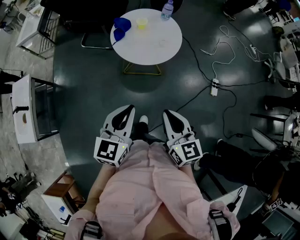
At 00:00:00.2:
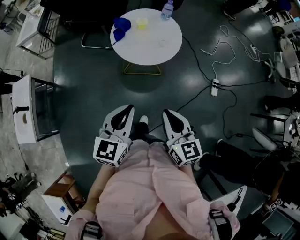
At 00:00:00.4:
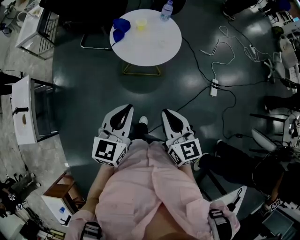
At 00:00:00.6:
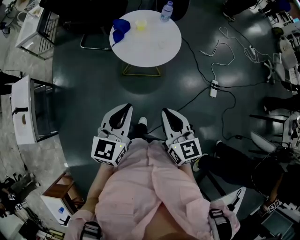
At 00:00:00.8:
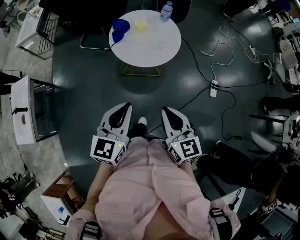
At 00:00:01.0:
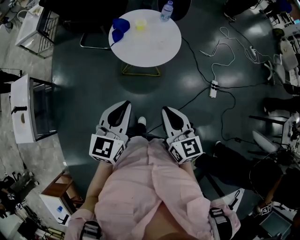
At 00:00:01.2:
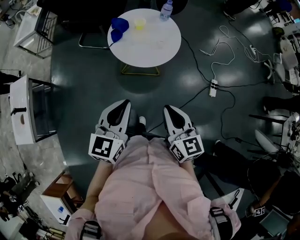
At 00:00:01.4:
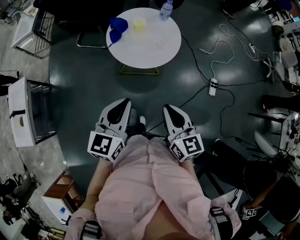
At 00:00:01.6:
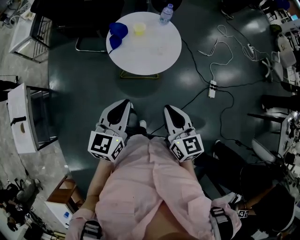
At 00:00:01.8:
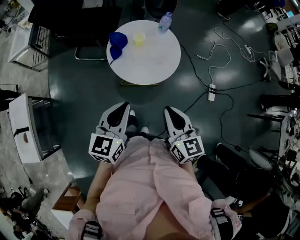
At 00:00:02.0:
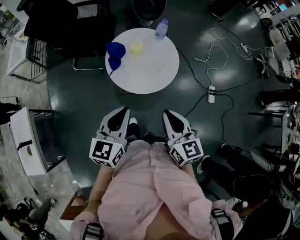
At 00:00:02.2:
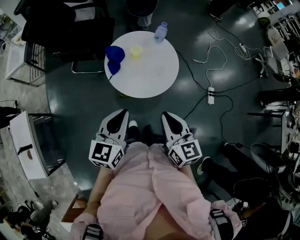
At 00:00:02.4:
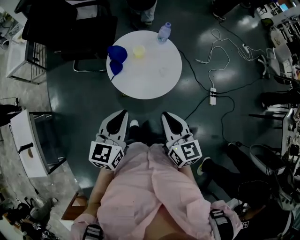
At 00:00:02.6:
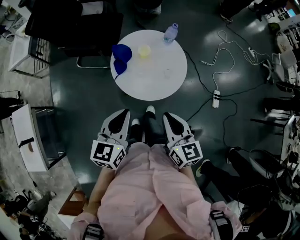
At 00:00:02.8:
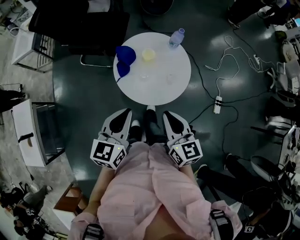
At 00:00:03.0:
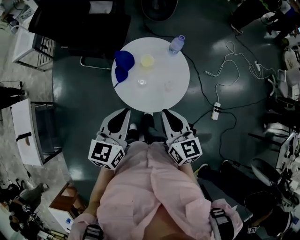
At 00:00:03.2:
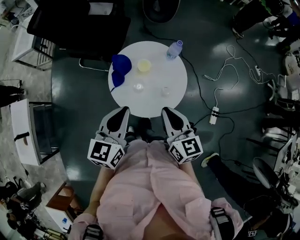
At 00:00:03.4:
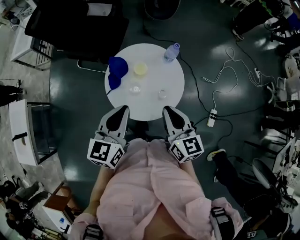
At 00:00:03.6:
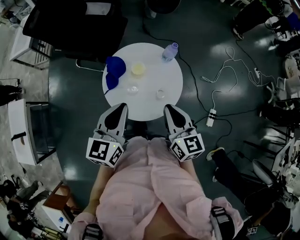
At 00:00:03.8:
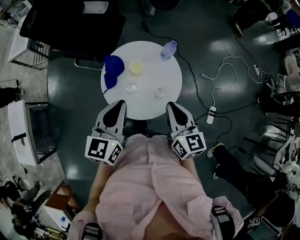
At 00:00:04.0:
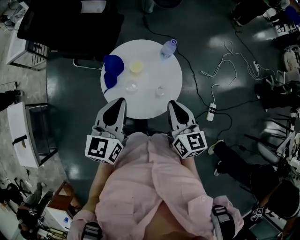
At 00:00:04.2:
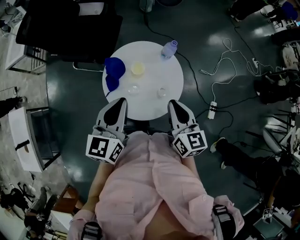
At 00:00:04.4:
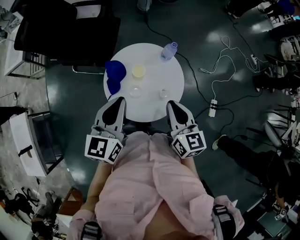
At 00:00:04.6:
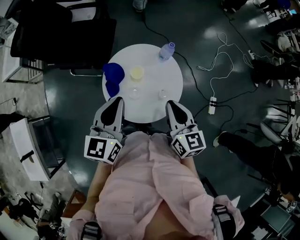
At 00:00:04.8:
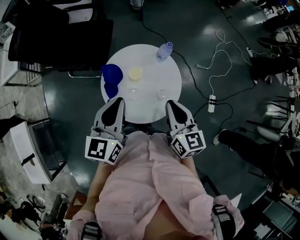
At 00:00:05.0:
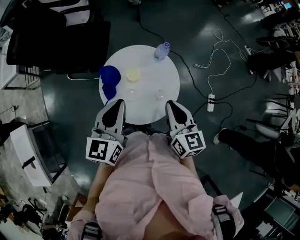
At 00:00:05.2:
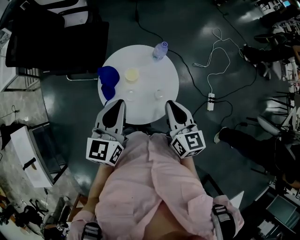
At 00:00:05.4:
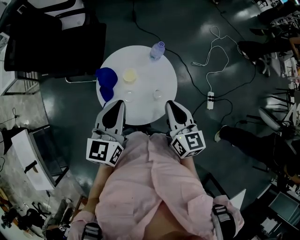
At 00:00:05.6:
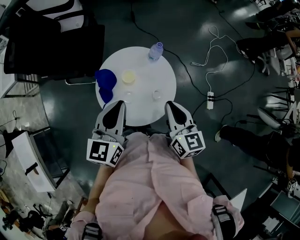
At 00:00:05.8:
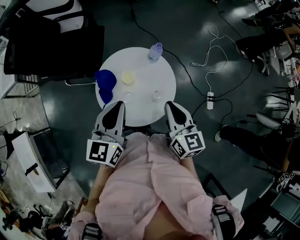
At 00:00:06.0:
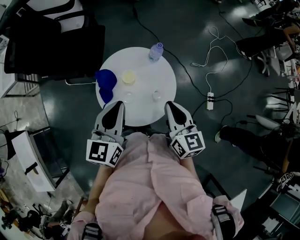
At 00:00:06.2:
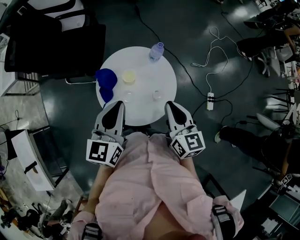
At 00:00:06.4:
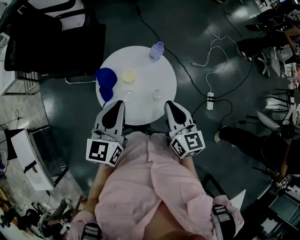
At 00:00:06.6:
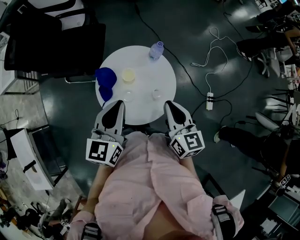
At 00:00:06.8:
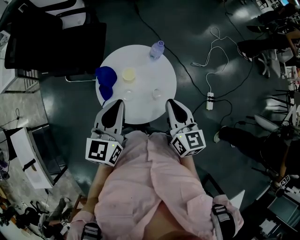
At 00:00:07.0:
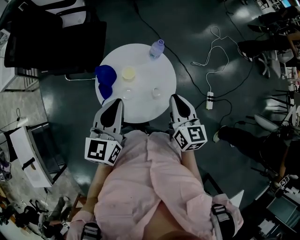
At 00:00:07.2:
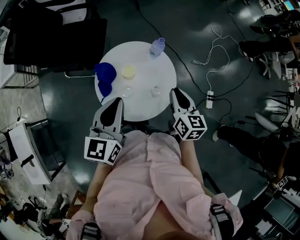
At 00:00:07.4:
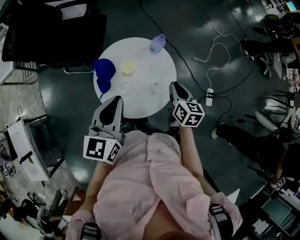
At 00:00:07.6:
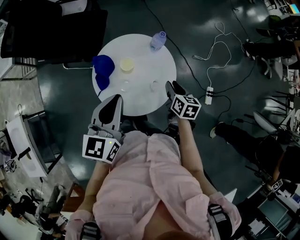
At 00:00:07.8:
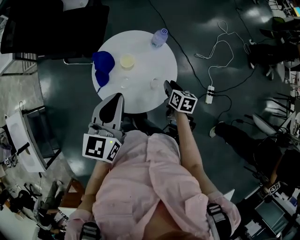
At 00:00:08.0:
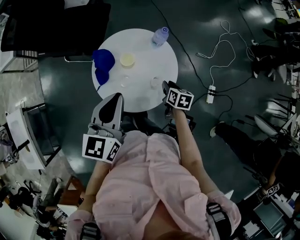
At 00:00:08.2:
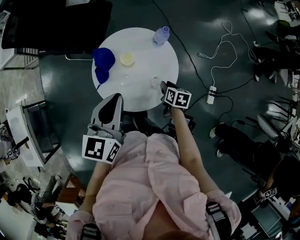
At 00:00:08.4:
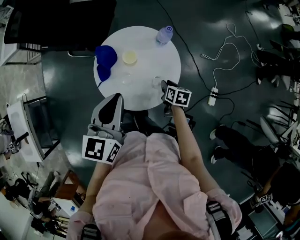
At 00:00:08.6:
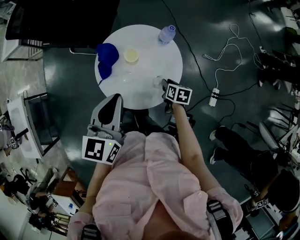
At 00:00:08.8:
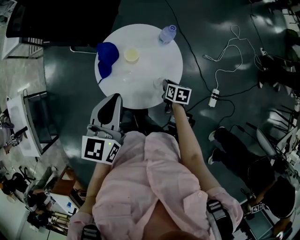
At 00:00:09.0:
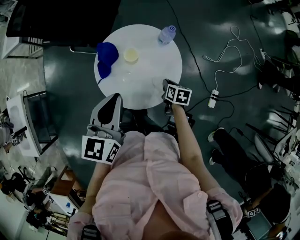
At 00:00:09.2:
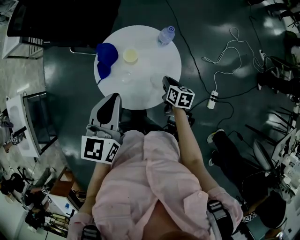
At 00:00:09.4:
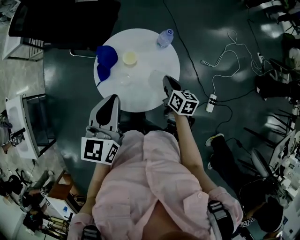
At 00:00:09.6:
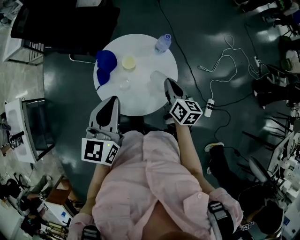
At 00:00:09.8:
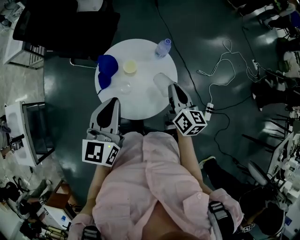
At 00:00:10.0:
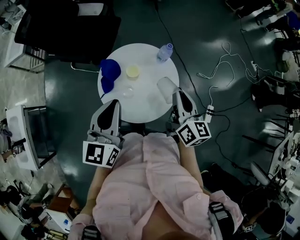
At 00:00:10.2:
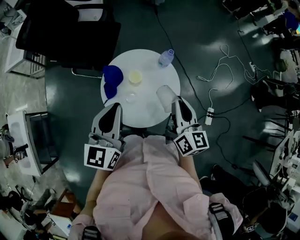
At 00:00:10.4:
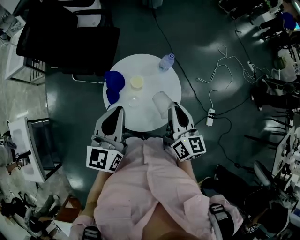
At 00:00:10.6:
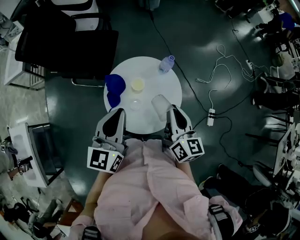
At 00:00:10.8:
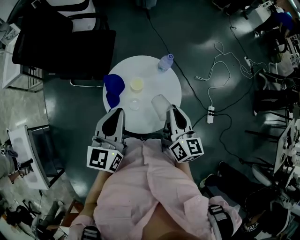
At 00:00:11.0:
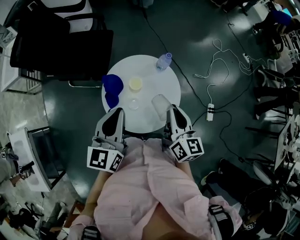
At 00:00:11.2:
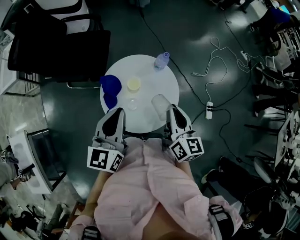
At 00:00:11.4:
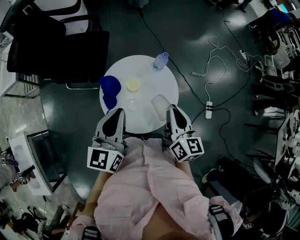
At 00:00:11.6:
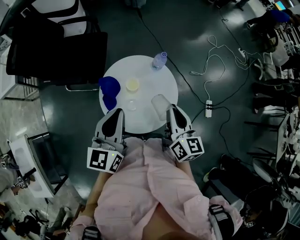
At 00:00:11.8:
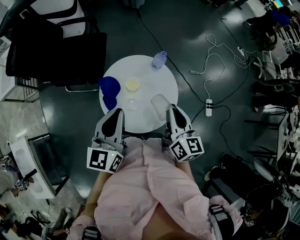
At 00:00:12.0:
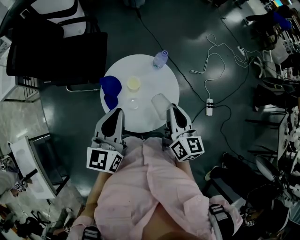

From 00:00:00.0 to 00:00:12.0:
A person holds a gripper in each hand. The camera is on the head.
From 00:00:00.0 to 00:00:01.6: The grippers both shift forward by approximately 10 cm.
From 00:00:01.6 to 00:00:03.0: Both grippers move forward, roughly 20 cm.
From 00:00:03.0 to 00:00:04.4: Both grippers travel together forward, about 10 cm.
From 00:00:04.4 to 00:00:06.0: The grippers stay close to where they were, moving slightly.
From 00:00:06.0 to 00:00:07.6: The right gripper shifts approximately 15 cm downward, and swivels about 30 degrees.
From 00:00:07.6 to 00:00:09.0: The right gripper heads downward, covering about 10 cm.
From 00:00:09.0 to 00:00:10.4: The right gripper moves upward, approximately 30 cm, and angles its fingers upward, by some 50 degrees, while the left gripper ends up roughly 5 cm from where it was.
From 00:00:10.4 to 00:00:12.0: The grippers stay close to where they were, moving slightly.

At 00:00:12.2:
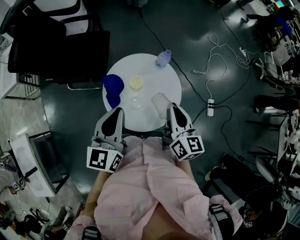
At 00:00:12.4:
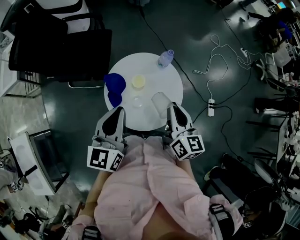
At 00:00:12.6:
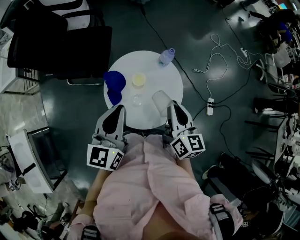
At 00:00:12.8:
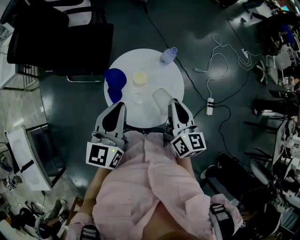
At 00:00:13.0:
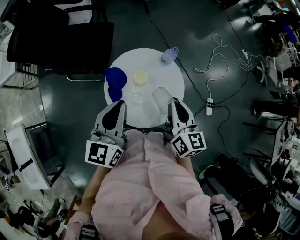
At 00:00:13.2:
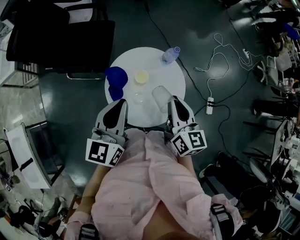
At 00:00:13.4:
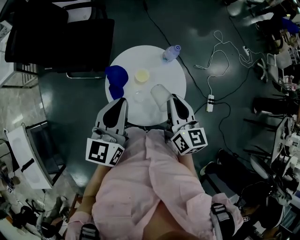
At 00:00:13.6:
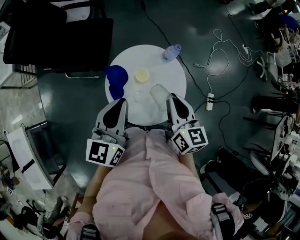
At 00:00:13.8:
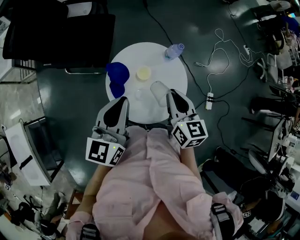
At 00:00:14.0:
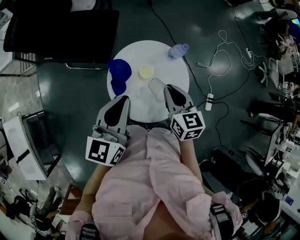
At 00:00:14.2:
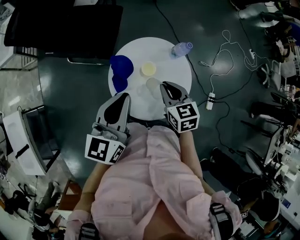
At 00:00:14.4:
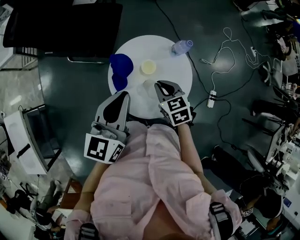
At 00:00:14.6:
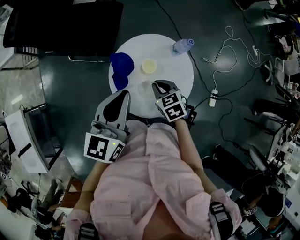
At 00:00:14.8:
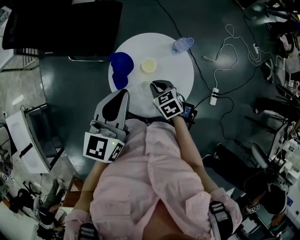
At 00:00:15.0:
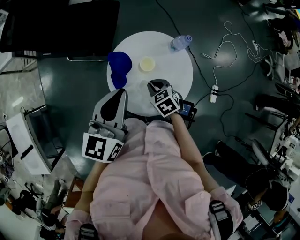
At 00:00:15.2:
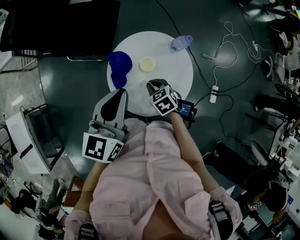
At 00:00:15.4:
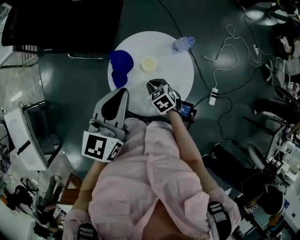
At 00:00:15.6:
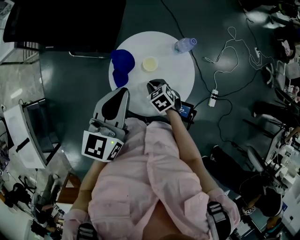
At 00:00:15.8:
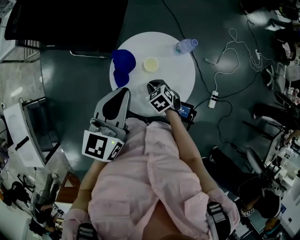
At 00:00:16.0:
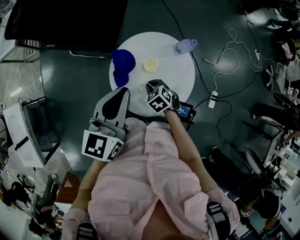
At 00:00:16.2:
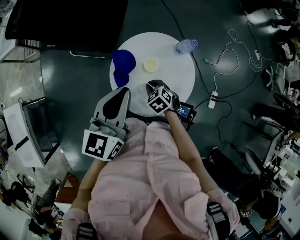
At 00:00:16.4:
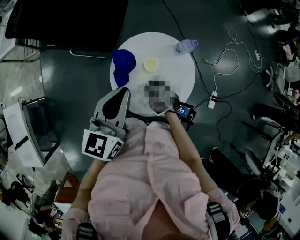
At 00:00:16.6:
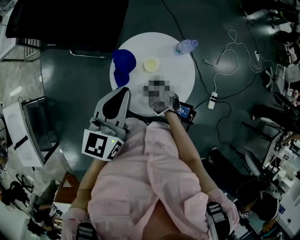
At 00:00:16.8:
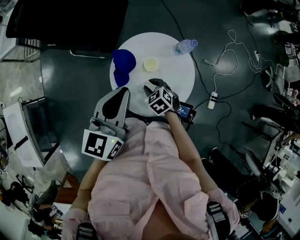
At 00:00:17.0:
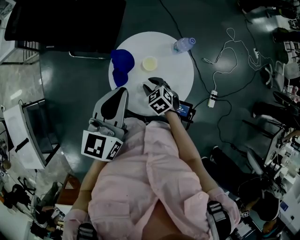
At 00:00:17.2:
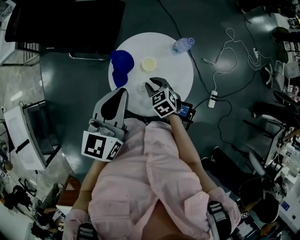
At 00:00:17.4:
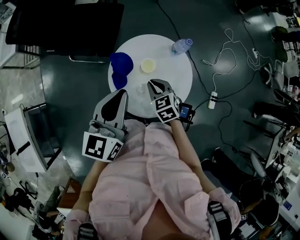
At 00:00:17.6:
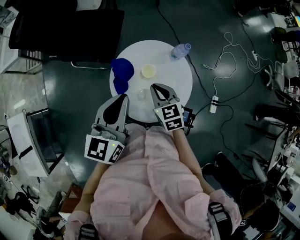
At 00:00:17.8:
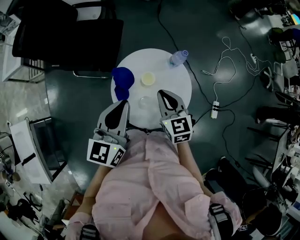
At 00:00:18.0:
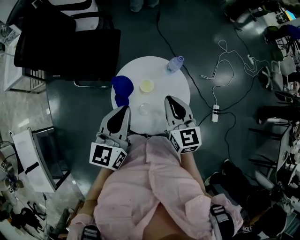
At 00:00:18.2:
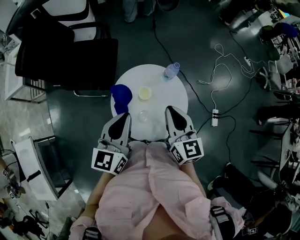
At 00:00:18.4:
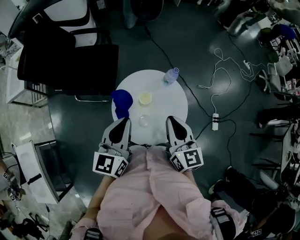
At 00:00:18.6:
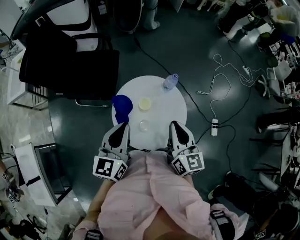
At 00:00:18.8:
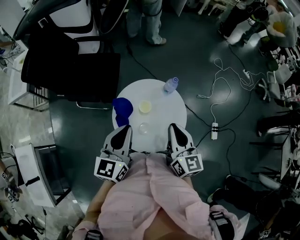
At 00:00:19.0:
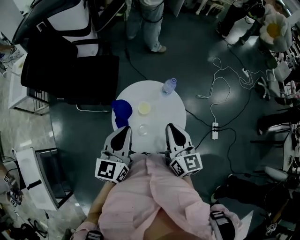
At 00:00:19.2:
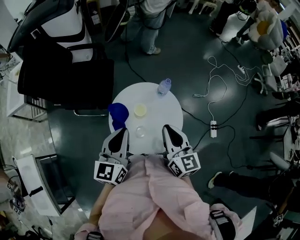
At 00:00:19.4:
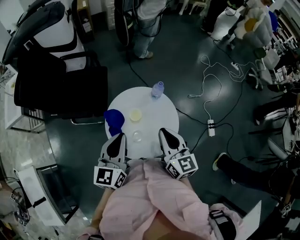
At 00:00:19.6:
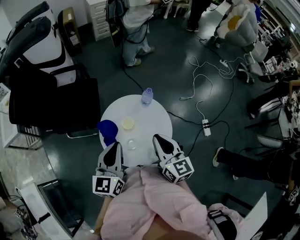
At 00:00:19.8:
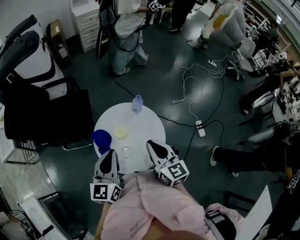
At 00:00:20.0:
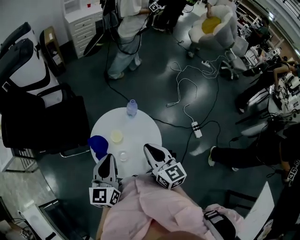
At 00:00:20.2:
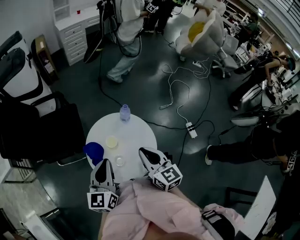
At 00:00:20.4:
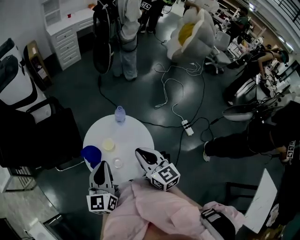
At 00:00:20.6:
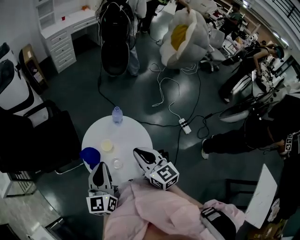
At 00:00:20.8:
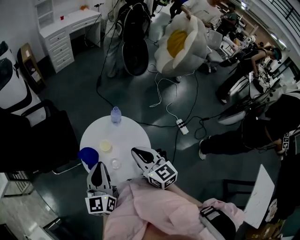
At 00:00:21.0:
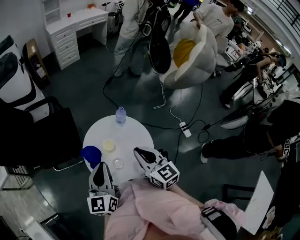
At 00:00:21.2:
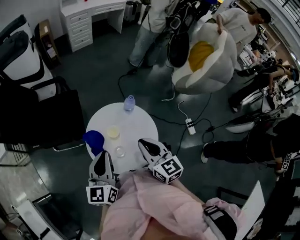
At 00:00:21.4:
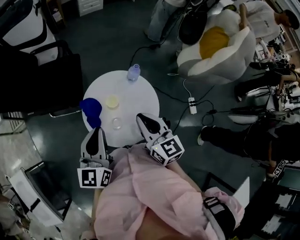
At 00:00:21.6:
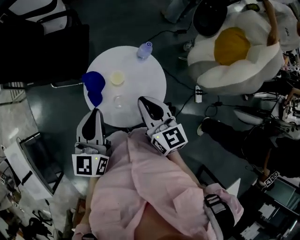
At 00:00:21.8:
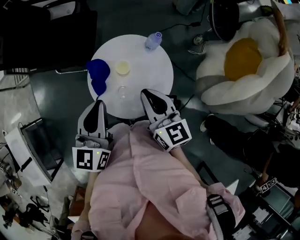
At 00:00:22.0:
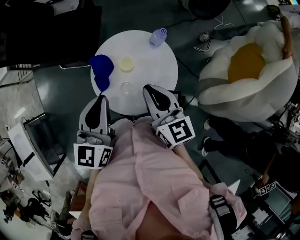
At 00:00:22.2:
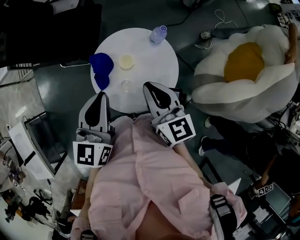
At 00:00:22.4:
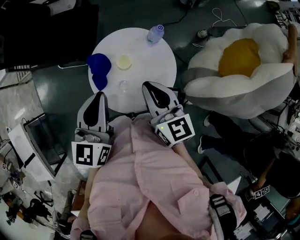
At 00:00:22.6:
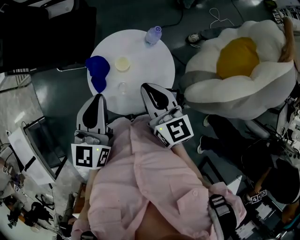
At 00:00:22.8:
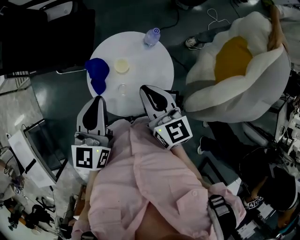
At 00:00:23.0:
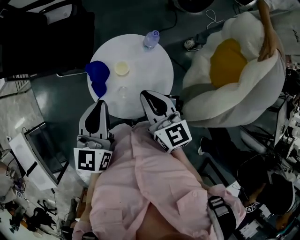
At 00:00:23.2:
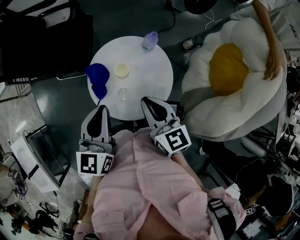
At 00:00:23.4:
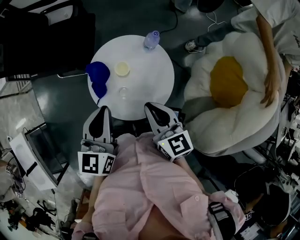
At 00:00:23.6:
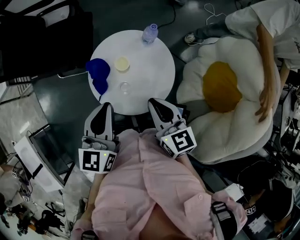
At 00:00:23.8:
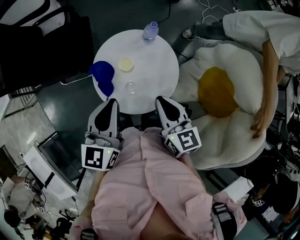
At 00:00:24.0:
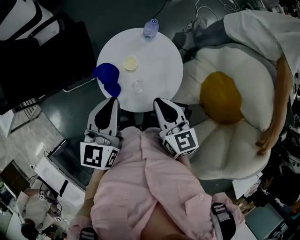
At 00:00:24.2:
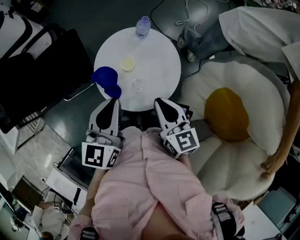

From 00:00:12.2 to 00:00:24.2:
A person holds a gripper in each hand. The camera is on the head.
From 00:00:12.2 to 00:00:13.8: The right gripper heads to the left, covering approximately 5 cm.
From 00:00:13.8 to 00:00:15.2: The right gripper heads downward, covering approximately 20 cm, and tips its fingers downward by some 40 degrees.
From 00:00:15.2 to 00:00:16.6: There are only small adjustments of the grippers.
From 00:00:16.6 to 00:00:18.2: The right gripper shifts roughly 25 cm upward, angles its fingers upward, by about 50 degrees, and closes.
From 00:00:18.2 to 00:00:19.8: The right gripper shifts by some 5 cm.
From 00:00:19.8 to 00:00:22.6: The grippers move only a little.
From 00:00:22.6 to 00:00:24.2: The left gripper rotates some 30 degrees, while the right gripper moves about 10 cm, and swivels some 30 degrees.
